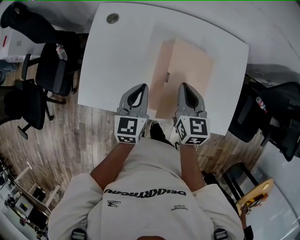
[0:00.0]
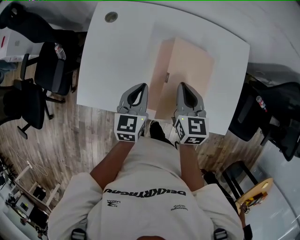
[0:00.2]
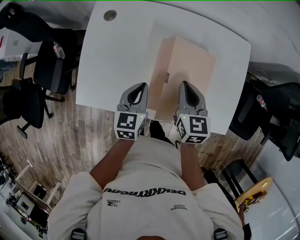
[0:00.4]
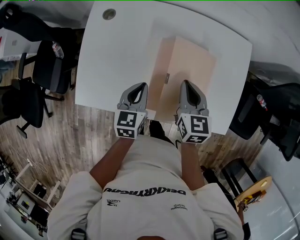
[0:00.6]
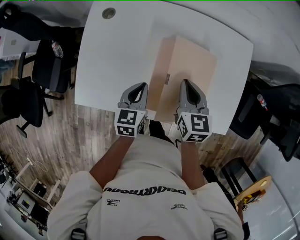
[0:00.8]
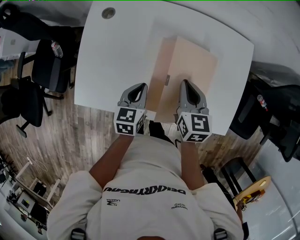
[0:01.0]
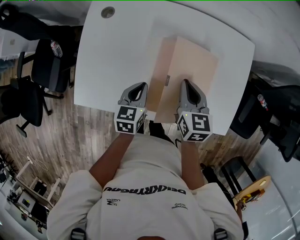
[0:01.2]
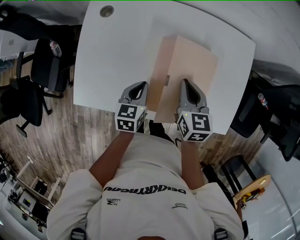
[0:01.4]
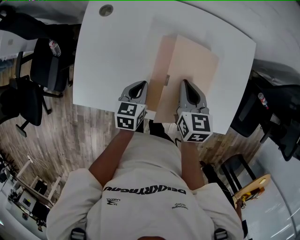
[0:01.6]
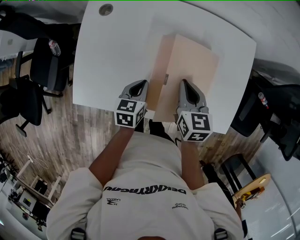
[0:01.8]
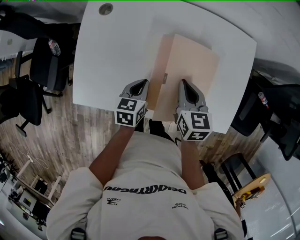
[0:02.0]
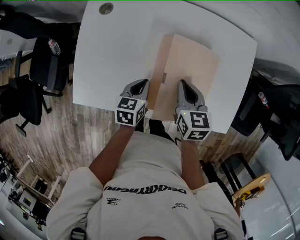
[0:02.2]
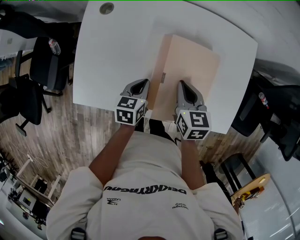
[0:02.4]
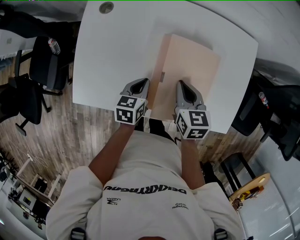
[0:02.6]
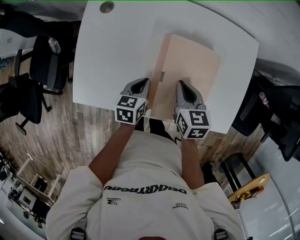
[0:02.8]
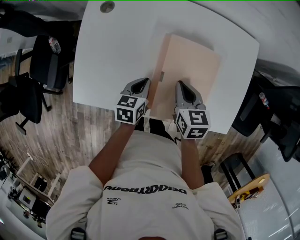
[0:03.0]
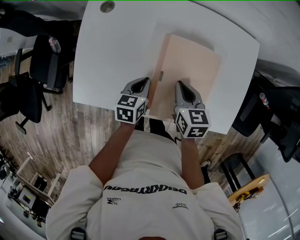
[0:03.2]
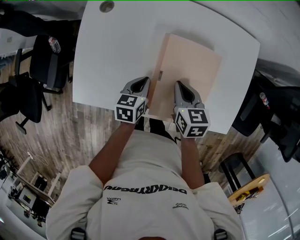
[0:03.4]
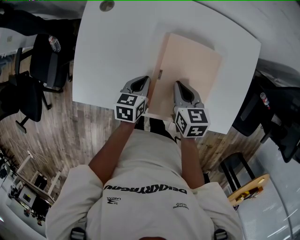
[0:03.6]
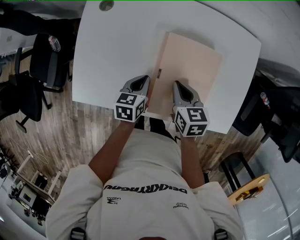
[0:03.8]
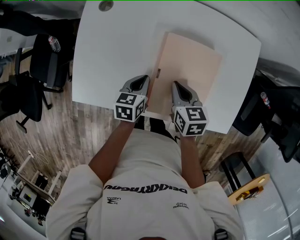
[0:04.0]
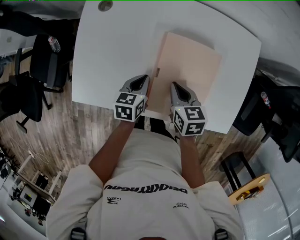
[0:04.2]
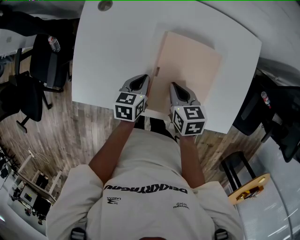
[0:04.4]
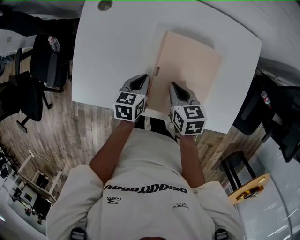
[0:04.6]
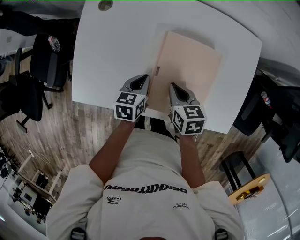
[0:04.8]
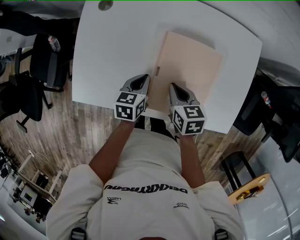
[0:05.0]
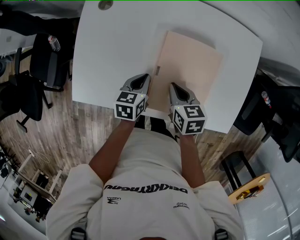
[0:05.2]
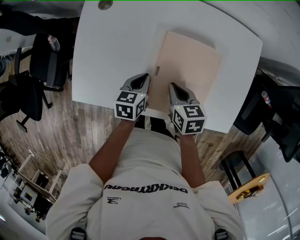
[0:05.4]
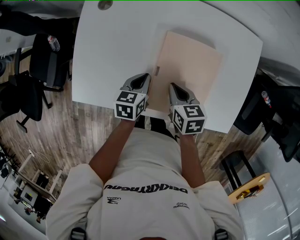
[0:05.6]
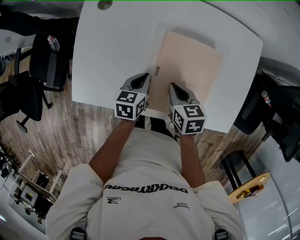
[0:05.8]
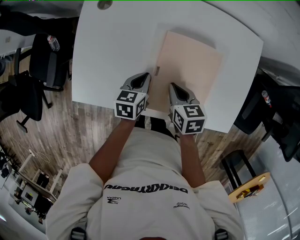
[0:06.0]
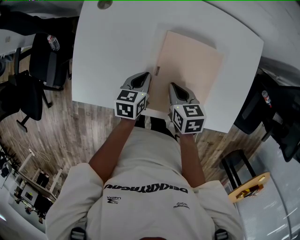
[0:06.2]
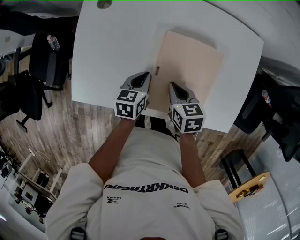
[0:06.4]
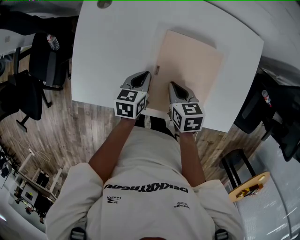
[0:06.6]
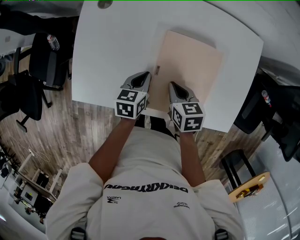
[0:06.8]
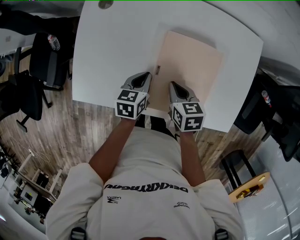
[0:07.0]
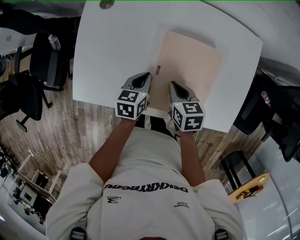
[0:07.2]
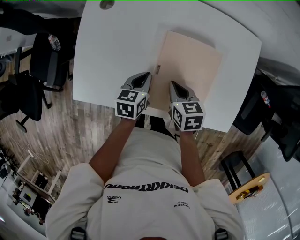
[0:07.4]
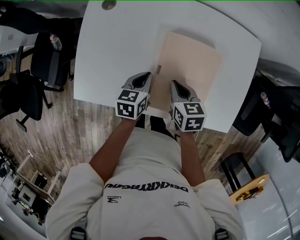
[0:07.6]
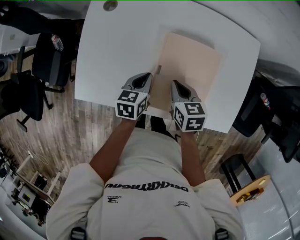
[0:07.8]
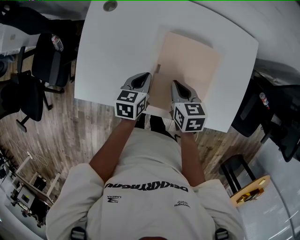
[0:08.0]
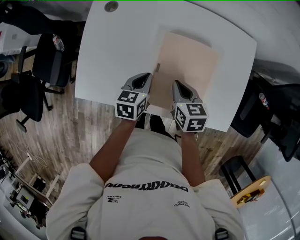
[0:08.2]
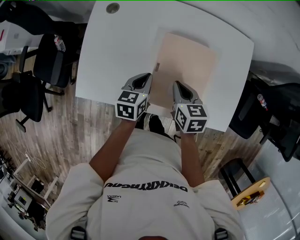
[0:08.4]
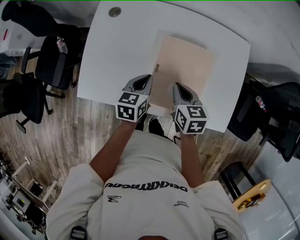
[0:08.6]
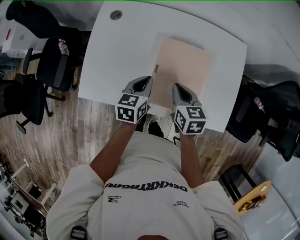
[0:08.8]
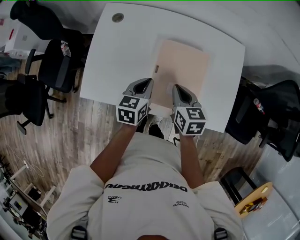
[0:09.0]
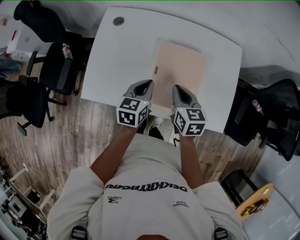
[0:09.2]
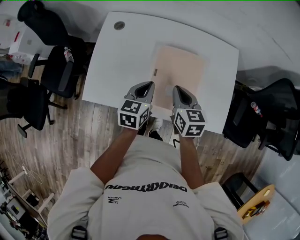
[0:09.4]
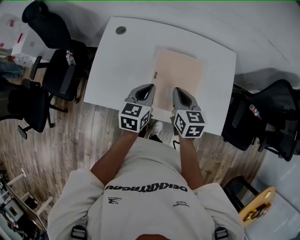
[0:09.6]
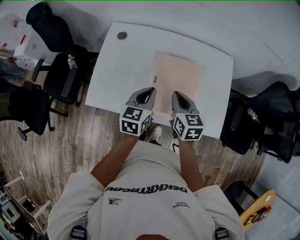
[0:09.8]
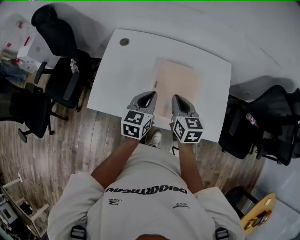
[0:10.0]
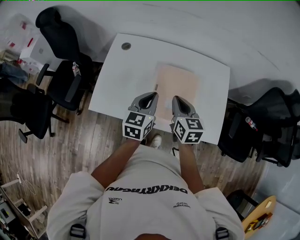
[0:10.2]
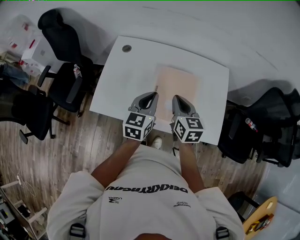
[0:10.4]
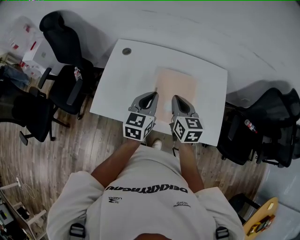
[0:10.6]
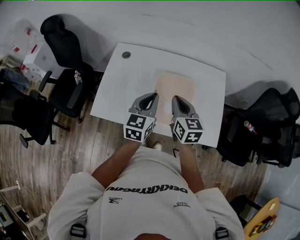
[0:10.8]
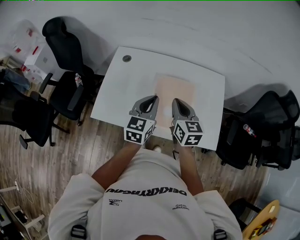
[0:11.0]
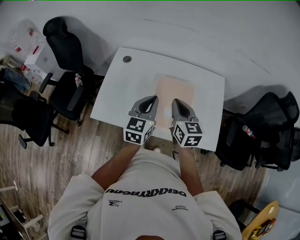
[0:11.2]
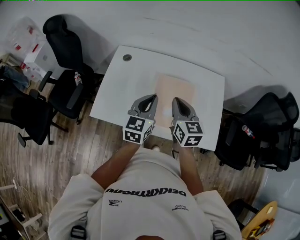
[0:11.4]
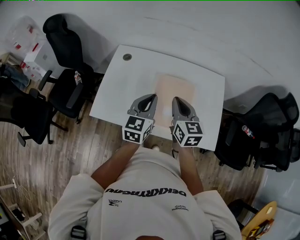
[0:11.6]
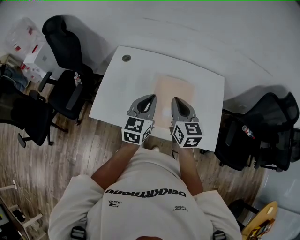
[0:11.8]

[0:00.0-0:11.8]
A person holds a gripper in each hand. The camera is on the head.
0:00.0 to 0:01.4: The left gripper heads downward, covering about 10 cm. The right gripper shifts by roughly 5 cm.
0:01.4 to 0:03.0: There are only small adjustments of the grippers.
0:03.0 to 0:06.0: The grippers stay close to where they were, moving slightly.
0:06.0 to 0:07.4: The two grippers keep their place.
0:07.4 to 0:08.8: Both grippers travel together upward, some 10 cm.
0:08.8 to 0:10.4: The two grippers go roughly 15 cm upward. The left gripper rotates roughly 20 degrees.
0:10.4 to 0:11.8: The grippers move only a little.

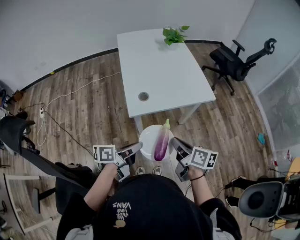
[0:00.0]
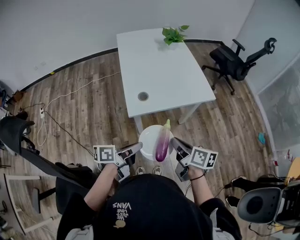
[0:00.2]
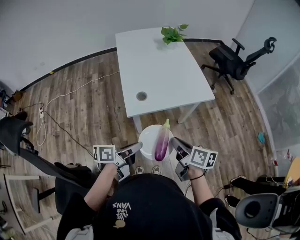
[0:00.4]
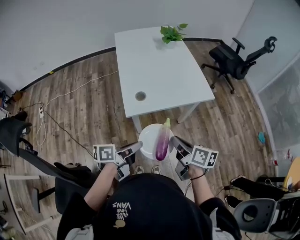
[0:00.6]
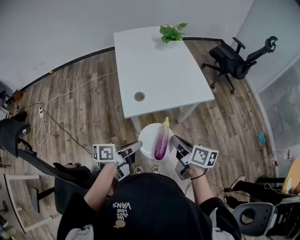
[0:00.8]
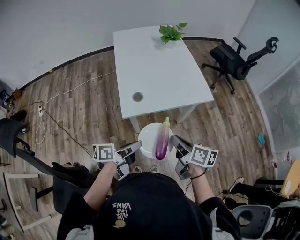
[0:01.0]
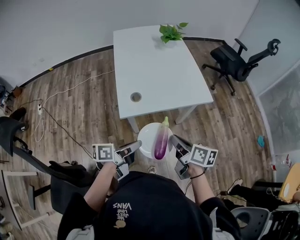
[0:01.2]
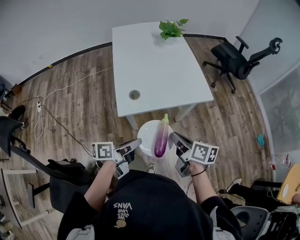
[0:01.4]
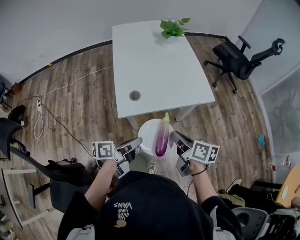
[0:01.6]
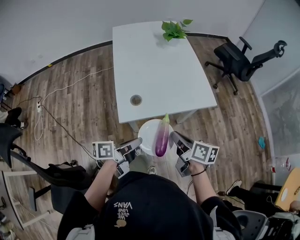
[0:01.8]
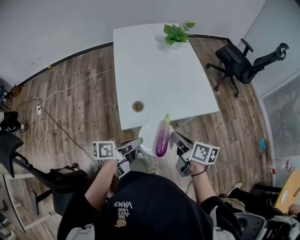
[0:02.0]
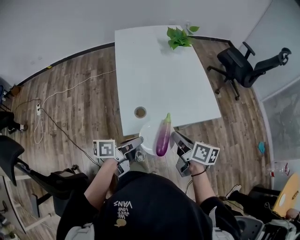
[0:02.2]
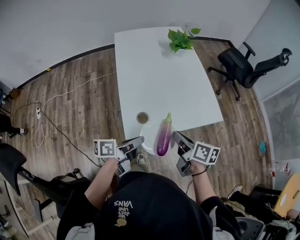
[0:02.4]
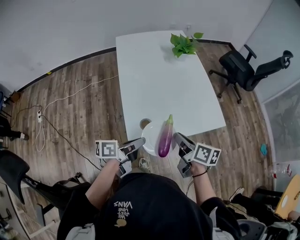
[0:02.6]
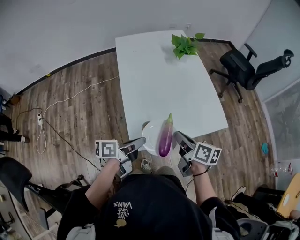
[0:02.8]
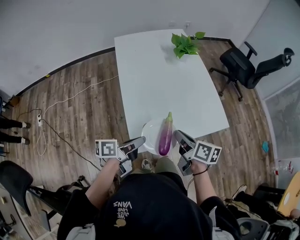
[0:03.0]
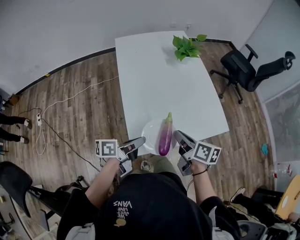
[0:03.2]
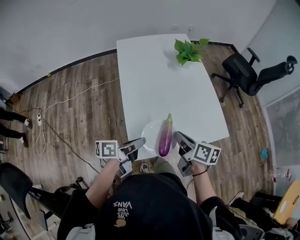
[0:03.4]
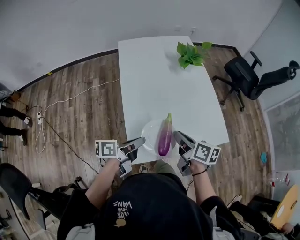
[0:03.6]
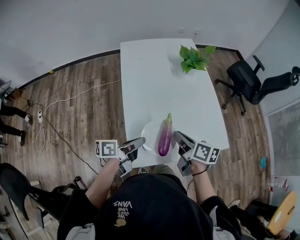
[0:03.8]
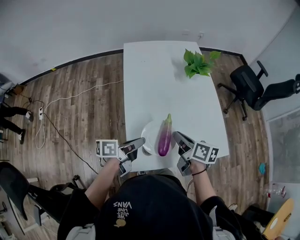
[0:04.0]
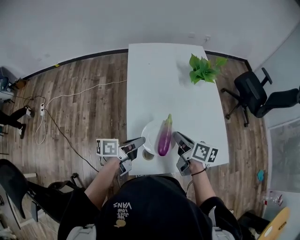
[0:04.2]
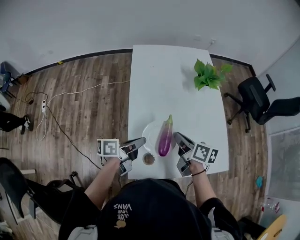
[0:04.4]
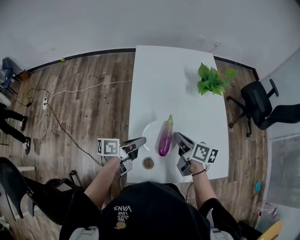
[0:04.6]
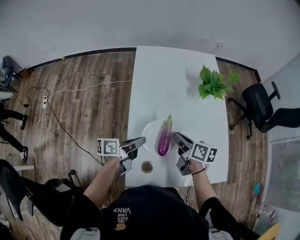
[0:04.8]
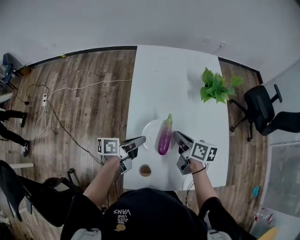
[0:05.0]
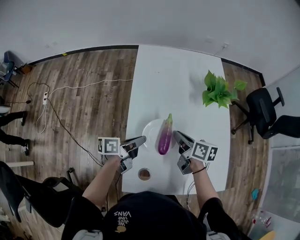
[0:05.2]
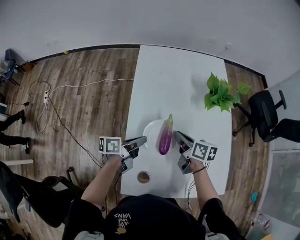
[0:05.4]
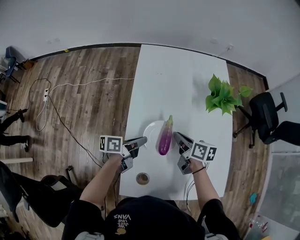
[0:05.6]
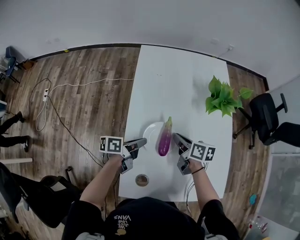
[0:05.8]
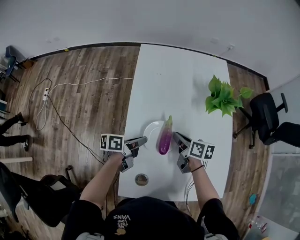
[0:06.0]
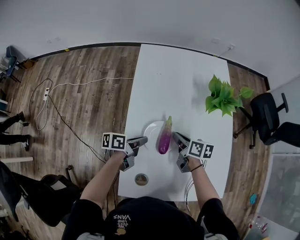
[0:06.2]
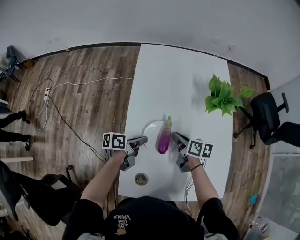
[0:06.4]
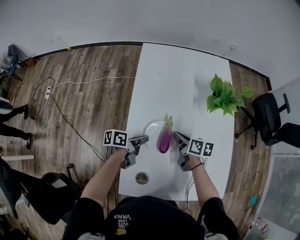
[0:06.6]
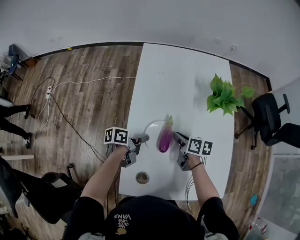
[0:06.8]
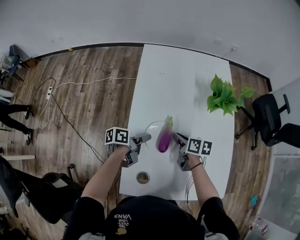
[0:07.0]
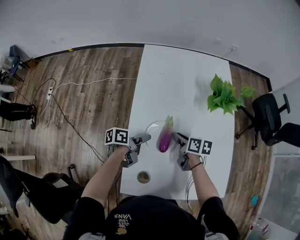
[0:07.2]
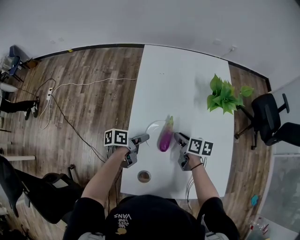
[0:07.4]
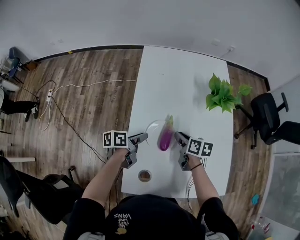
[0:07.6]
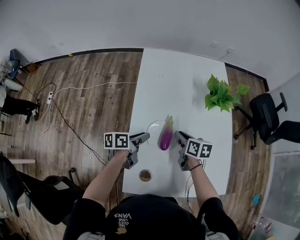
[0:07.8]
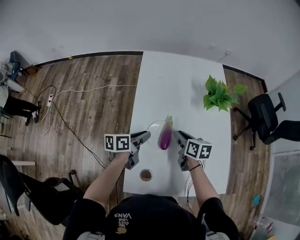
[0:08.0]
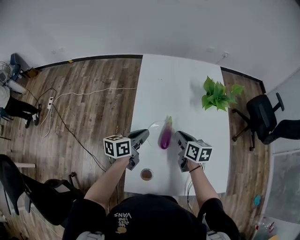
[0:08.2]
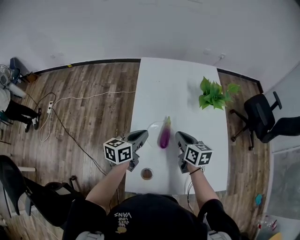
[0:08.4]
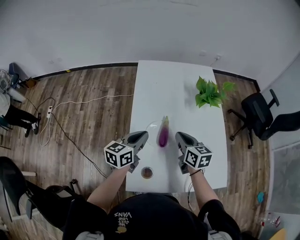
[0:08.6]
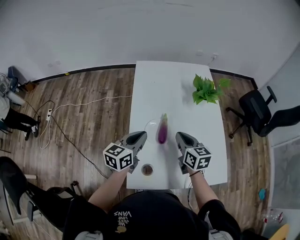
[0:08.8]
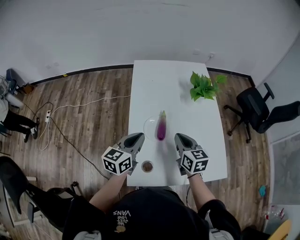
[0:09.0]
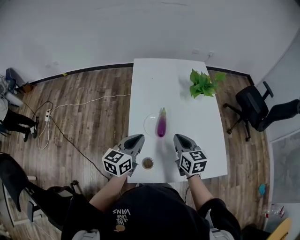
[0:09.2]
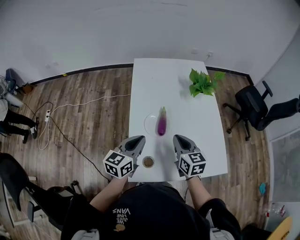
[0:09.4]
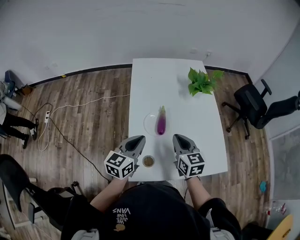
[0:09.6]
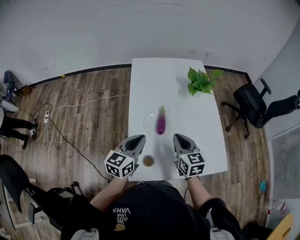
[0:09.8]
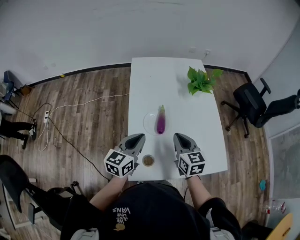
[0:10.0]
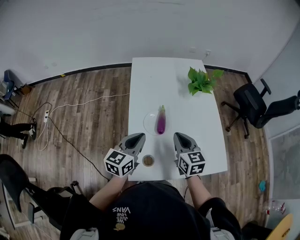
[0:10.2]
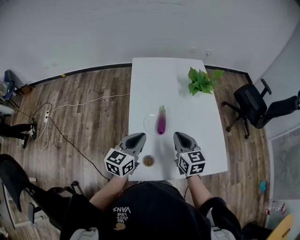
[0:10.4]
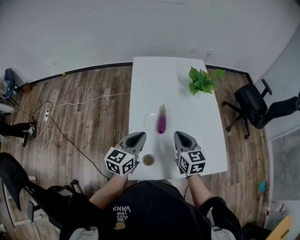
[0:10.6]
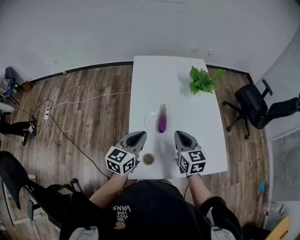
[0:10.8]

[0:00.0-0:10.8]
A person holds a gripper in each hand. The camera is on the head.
0:00.0 to 0:01.6: The grippers both shift forward by roughly 5 cm.
0:01.6 to 0:03.0: The grippers both shift forward and to the left by some 20 cm.
0:03.0 to 0:04.6: The two grippers go approximately 20 cm forward.
0:04.6 to 0:06.2: Both grippers move forward and downward, some 15 cm.
0:06.2 to 0:07.8: The left gripper opens up.
0:07.8 to 0:09.2: The left gripper heads upward and backward, covering approximately 15 cm, twists some 40 degrees clockwise, seen from behind, and closes up. Meanwhile the right gripper heads backward and upward, covering about 15 cm, and swivels some 30 degrees.
0:09.2 to 0:10.8: The grippers move only a little.

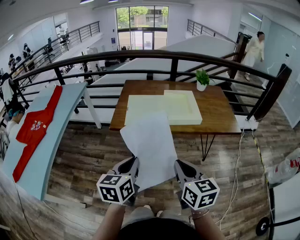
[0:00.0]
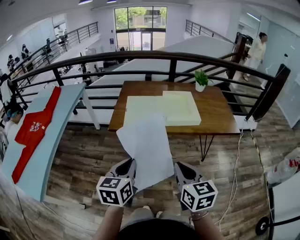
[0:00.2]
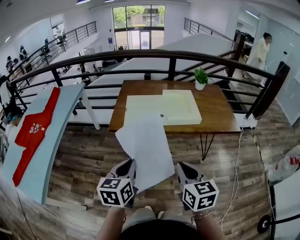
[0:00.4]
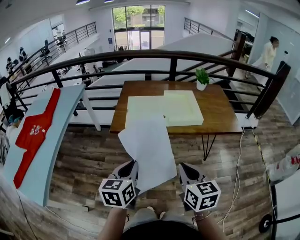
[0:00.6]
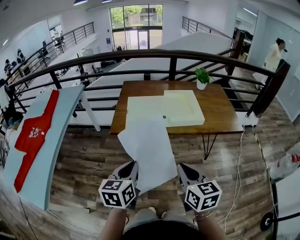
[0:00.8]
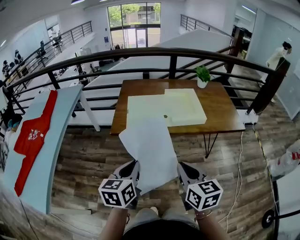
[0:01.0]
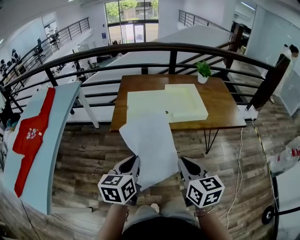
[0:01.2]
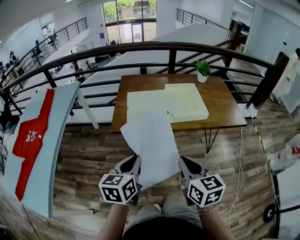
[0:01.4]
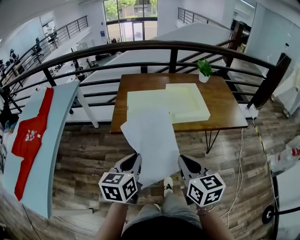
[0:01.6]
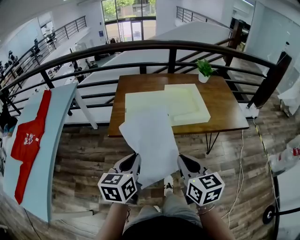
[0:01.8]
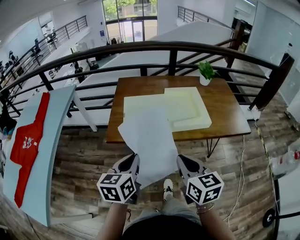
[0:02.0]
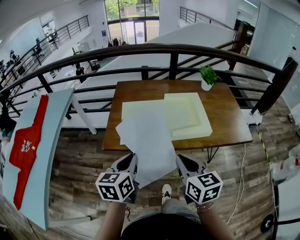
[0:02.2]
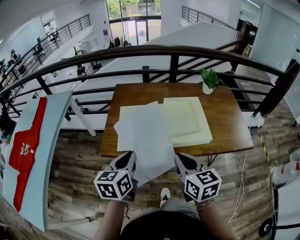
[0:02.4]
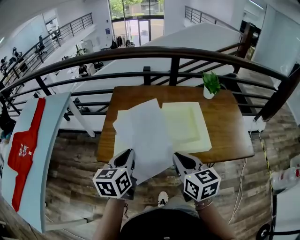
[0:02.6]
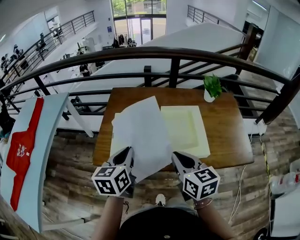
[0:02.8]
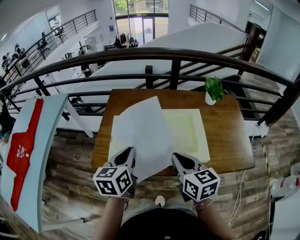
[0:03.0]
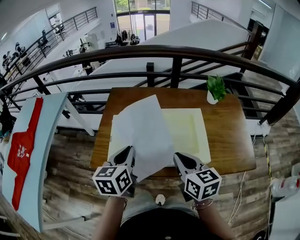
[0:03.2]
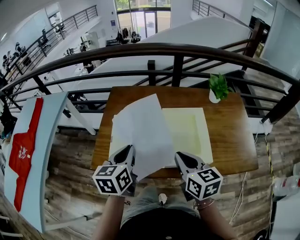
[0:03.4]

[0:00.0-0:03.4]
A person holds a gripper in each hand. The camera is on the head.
0:00.0 to 0:01.6: The grippers both shift forward by about 5 cm.
0:01.6 to 0:03.4: Both grippers move forward, some 30 cm.
